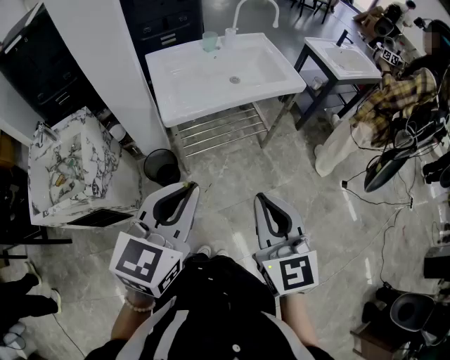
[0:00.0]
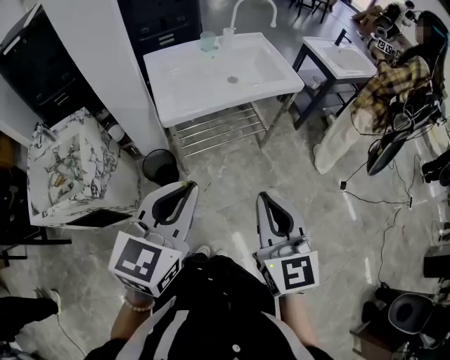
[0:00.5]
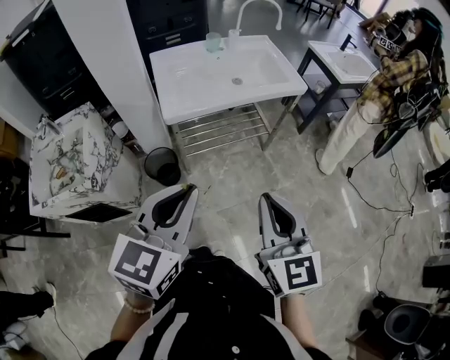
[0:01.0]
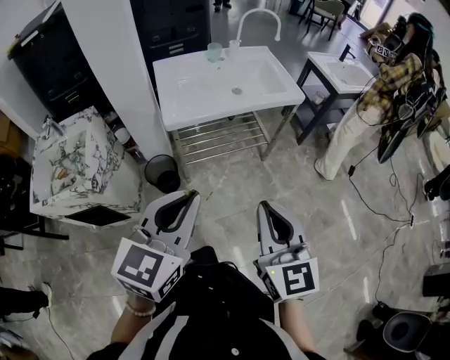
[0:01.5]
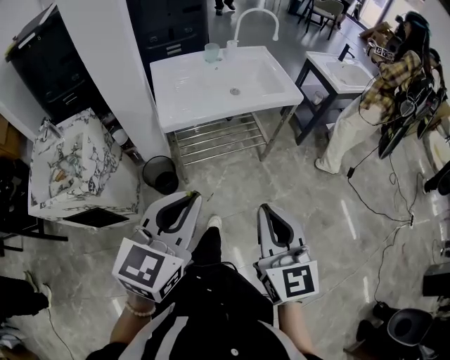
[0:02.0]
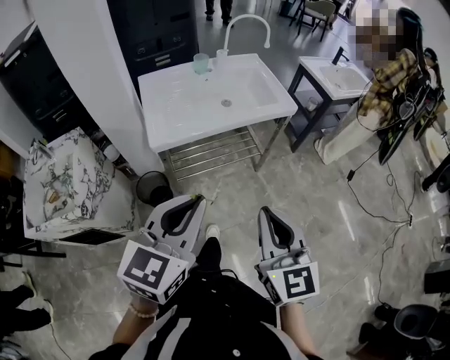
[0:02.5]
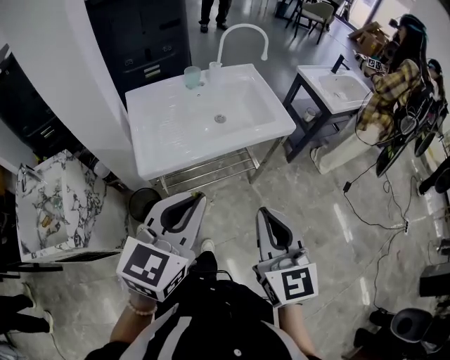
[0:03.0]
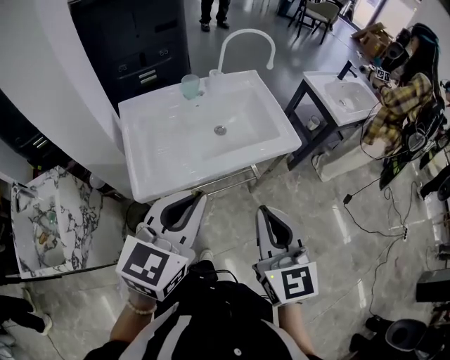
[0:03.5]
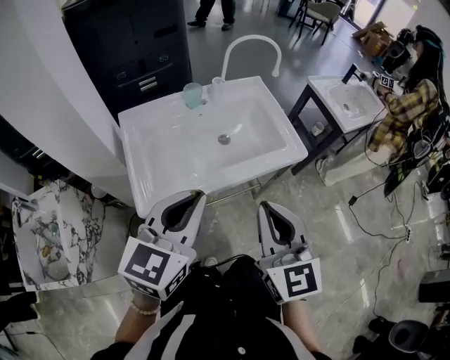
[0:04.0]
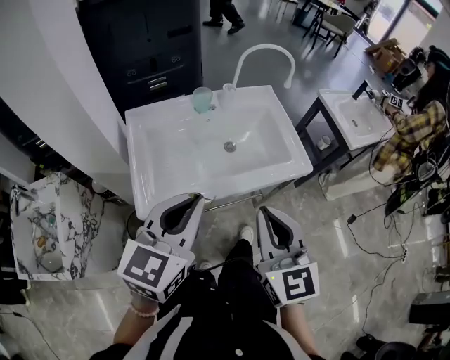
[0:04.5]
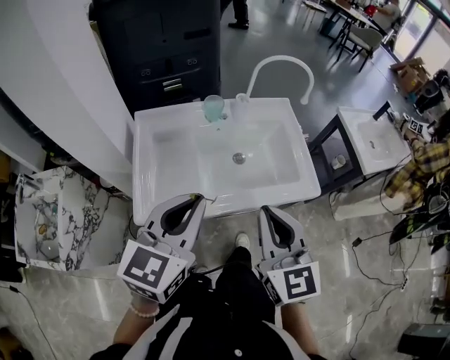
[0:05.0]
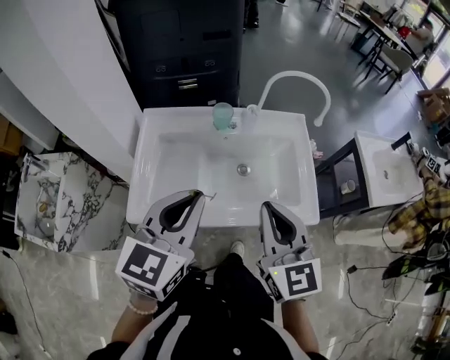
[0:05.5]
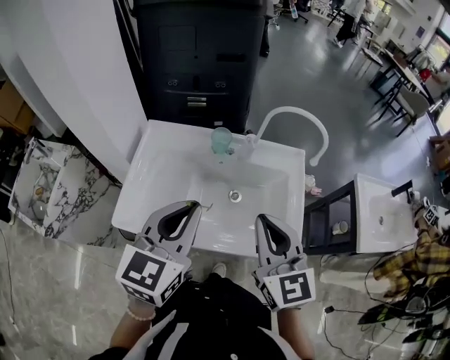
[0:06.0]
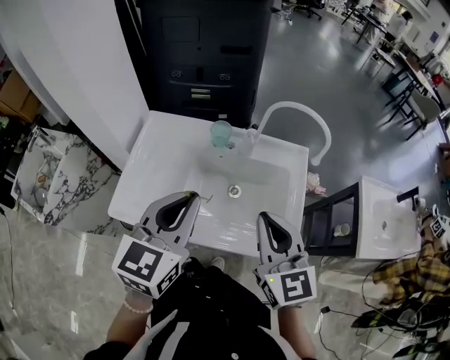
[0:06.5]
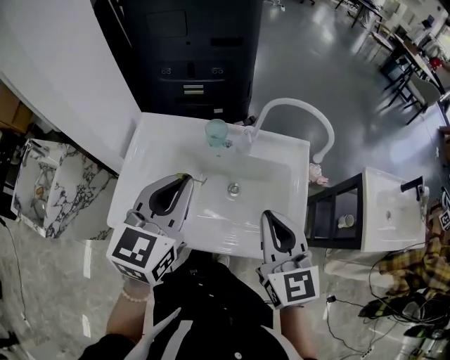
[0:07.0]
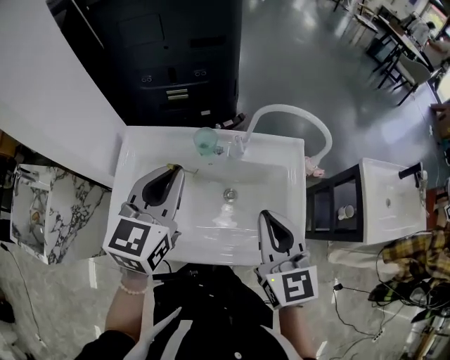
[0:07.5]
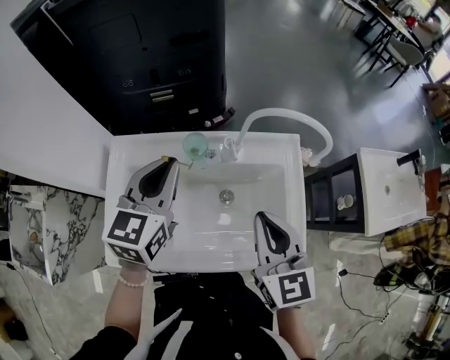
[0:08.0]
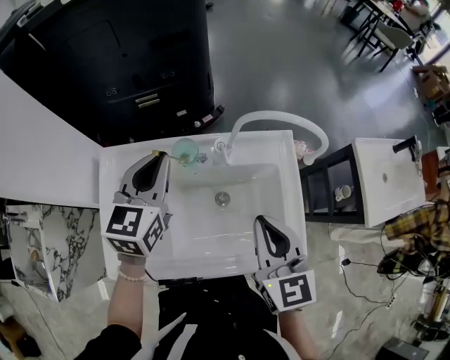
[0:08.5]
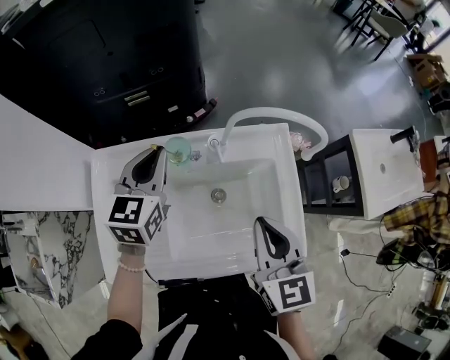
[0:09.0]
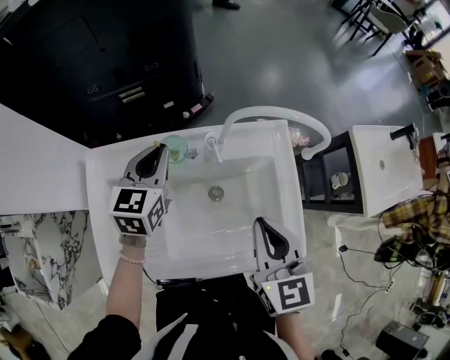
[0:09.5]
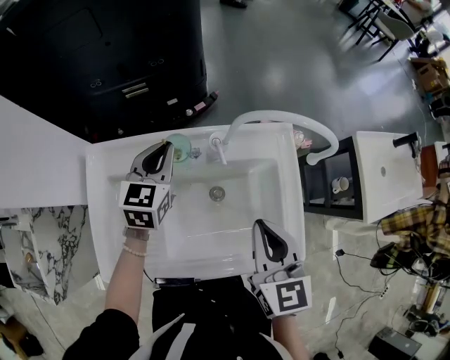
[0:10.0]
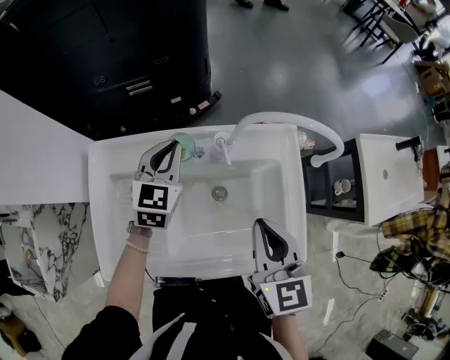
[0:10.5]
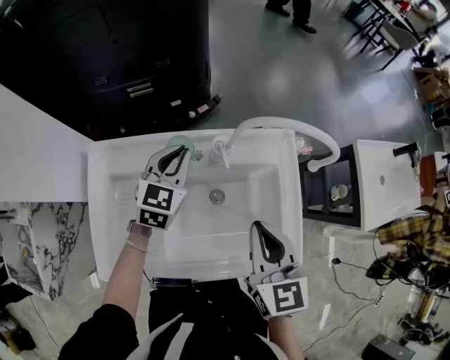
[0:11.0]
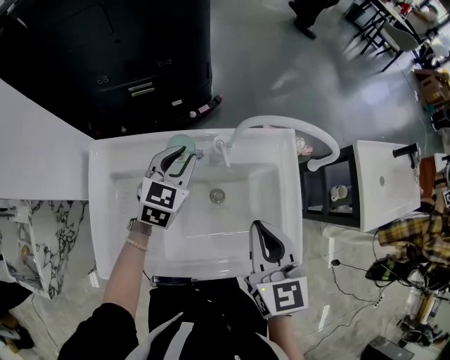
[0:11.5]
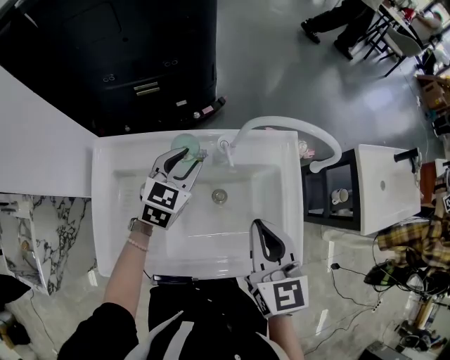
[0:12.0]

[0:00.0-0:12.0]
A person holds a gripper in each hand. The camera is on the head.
0:00.0 to 0:02.0: The left gripper ends up approximately 5 cm from where it was; the right gripper goes roughly 5 cm to the right.
0:02.0 to 0:04.0: Both grippers travel together forward, roughly 35 cm.
0:04.0 to 0:06.0: The right gripper shifts by about 25 cm, and turns by roughly 30 degrees, while the left gripper moves approximately 20 cm, and changes its angle by roughly 30 degrees.
0:06.0 to 0:08.0: The right gripper heads forward and downward, covering some 10 cm. The left gripper heads forward, covering some 20 cm.
0:08.0 to 0:10.0: The left gripper shifts approximately 15 cm downward and forward.
0:10.0 to 0:12.0: The left gripper ends up some 5 cm from where it was, and opens its fingers.

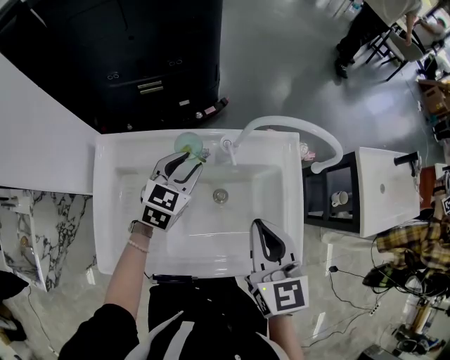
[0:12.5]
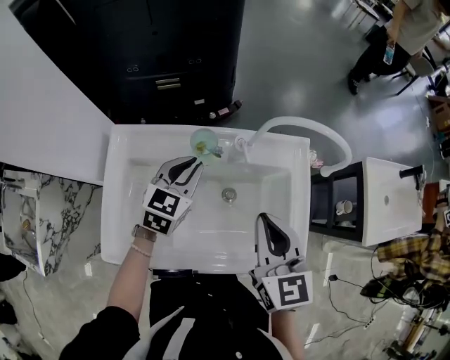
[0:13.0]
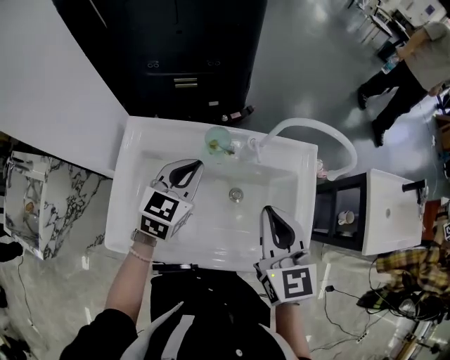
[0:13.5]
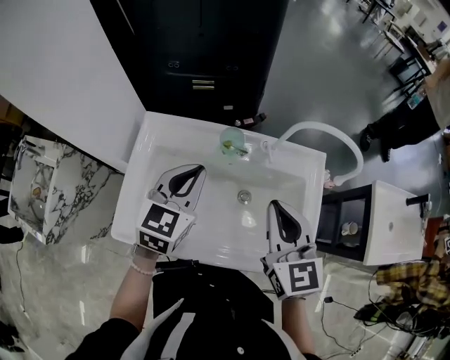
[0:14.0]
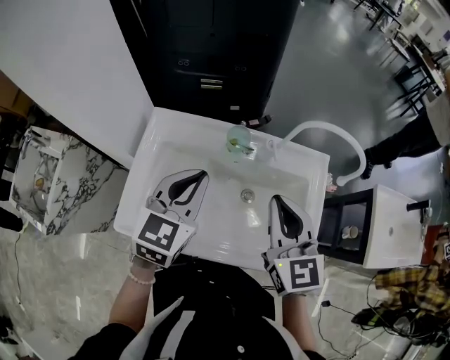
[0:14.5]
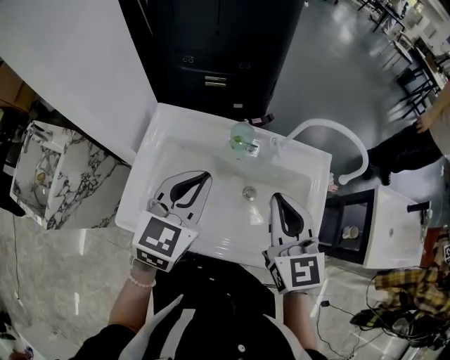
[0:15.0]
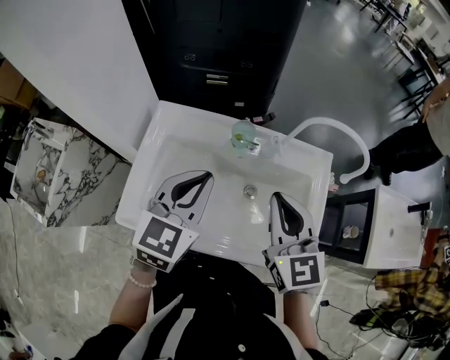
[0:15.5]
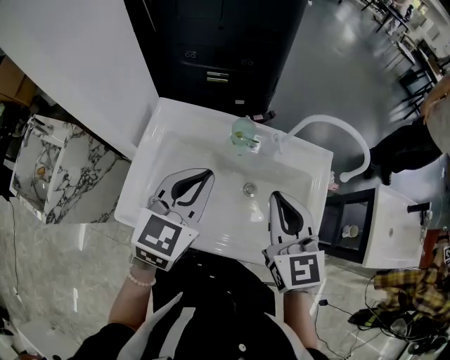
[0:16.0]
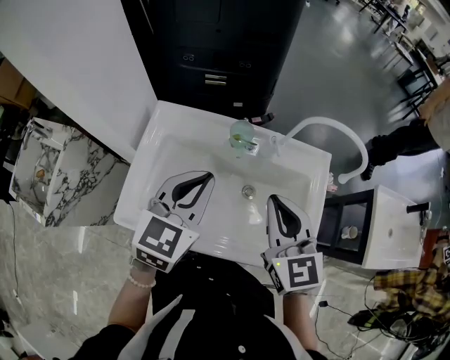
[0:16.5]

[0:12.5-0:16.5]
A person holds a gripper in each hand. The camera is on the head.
0:12.5 to 0:14.5: The right gripper heads to the left, covering approximately 5 cm, while the left gripper shifts about 20 cm backward, upward and to the left, and closes.
0:14.5 to 0:16.5: There are only small adjustments of the grippers.

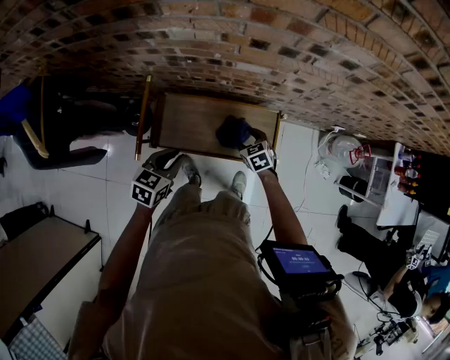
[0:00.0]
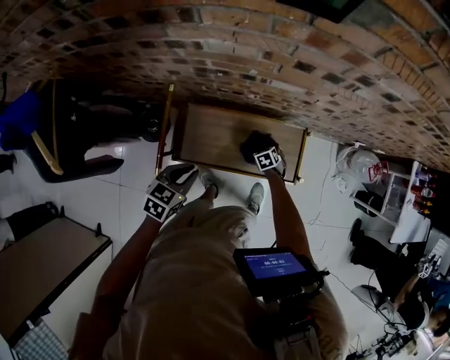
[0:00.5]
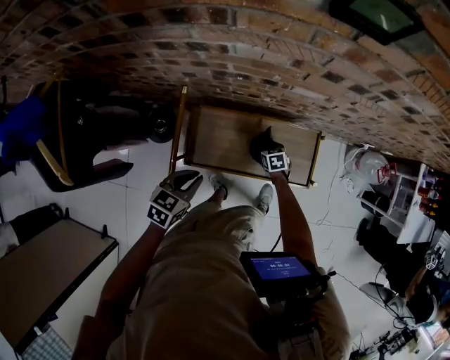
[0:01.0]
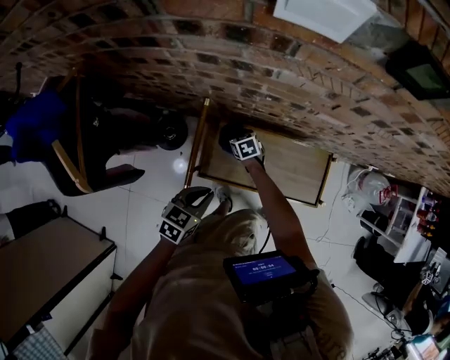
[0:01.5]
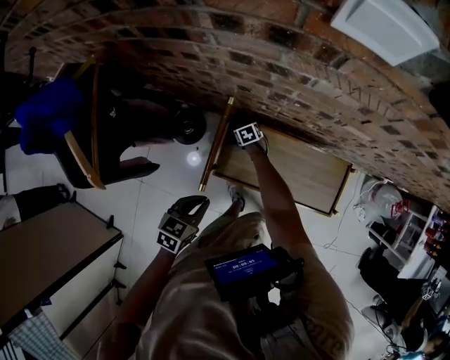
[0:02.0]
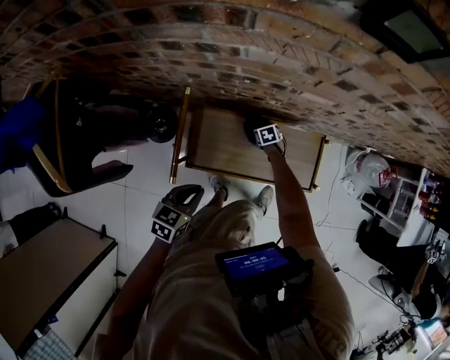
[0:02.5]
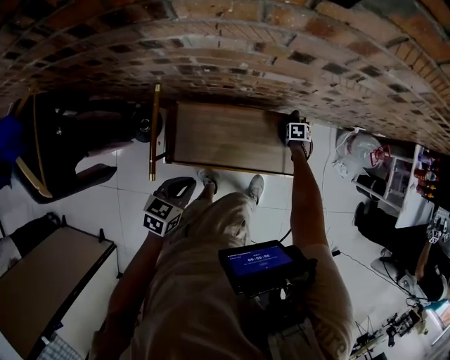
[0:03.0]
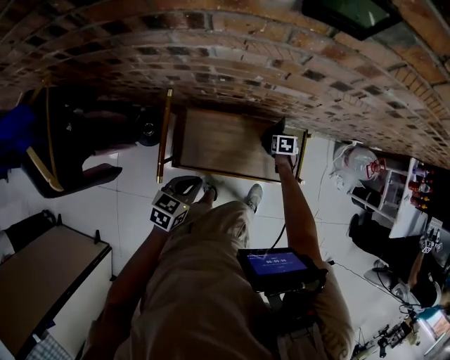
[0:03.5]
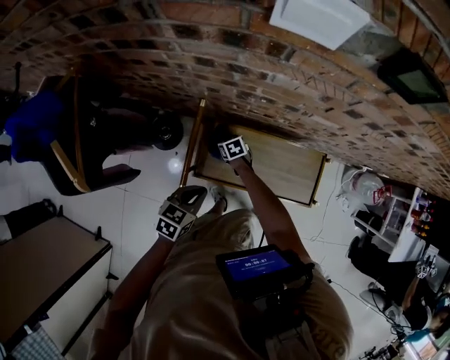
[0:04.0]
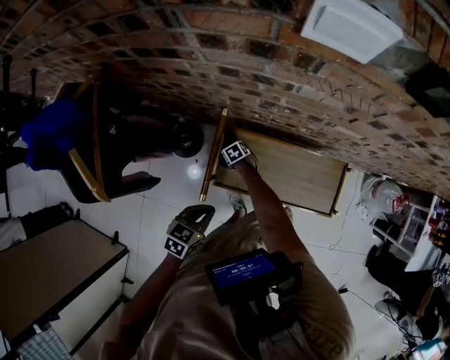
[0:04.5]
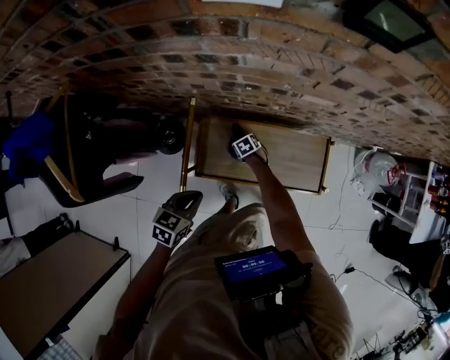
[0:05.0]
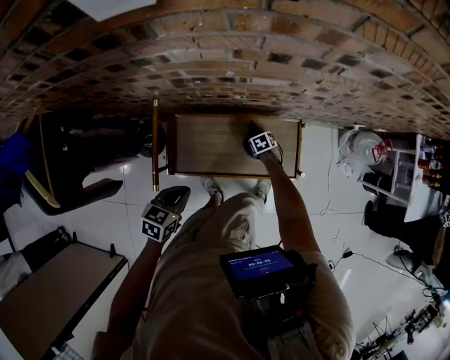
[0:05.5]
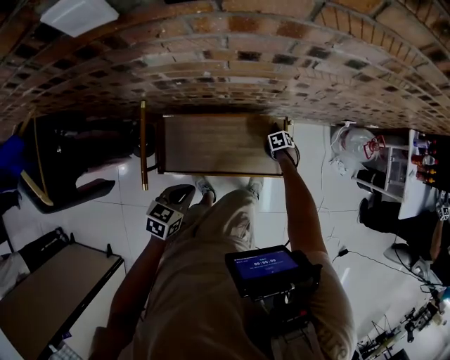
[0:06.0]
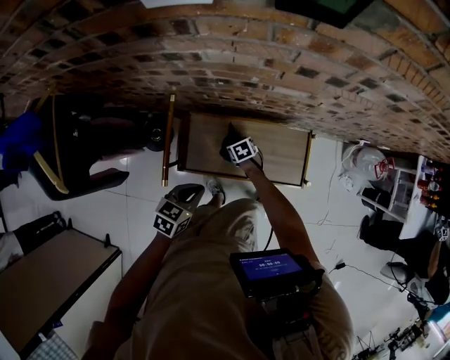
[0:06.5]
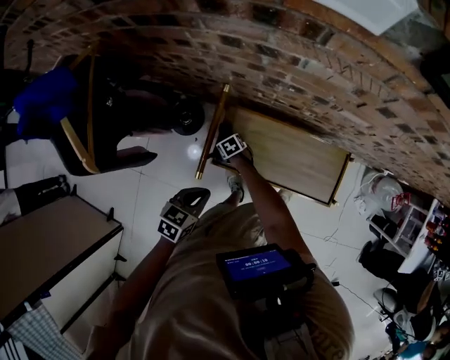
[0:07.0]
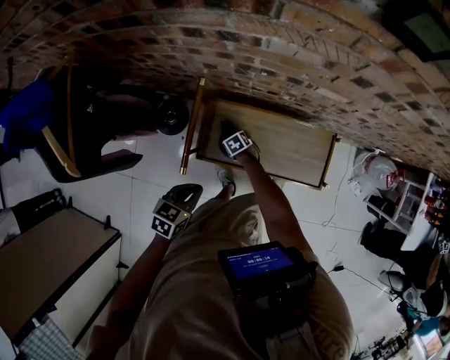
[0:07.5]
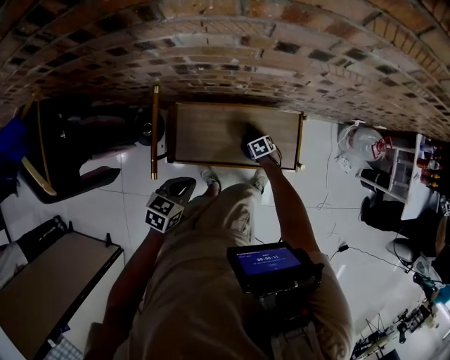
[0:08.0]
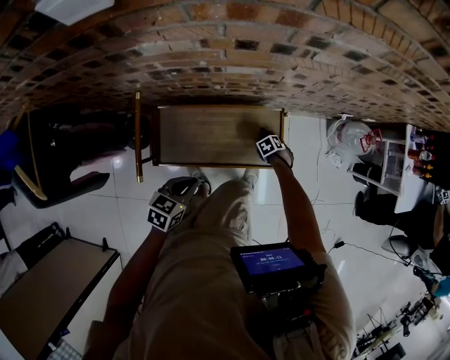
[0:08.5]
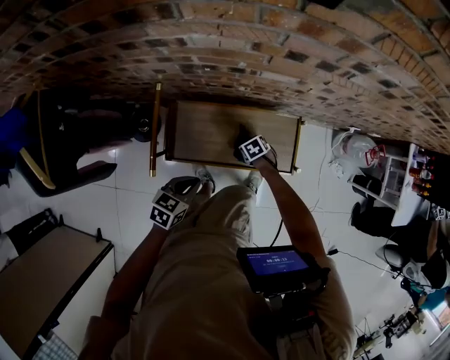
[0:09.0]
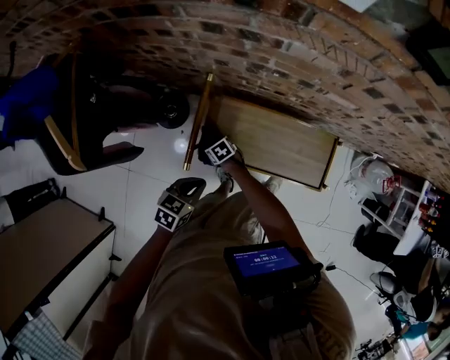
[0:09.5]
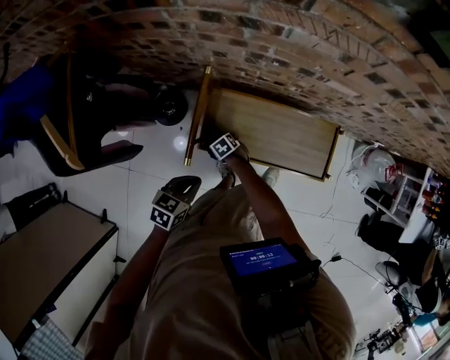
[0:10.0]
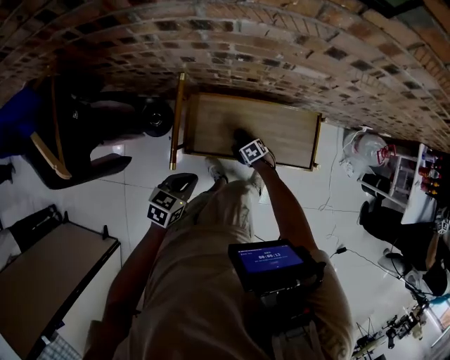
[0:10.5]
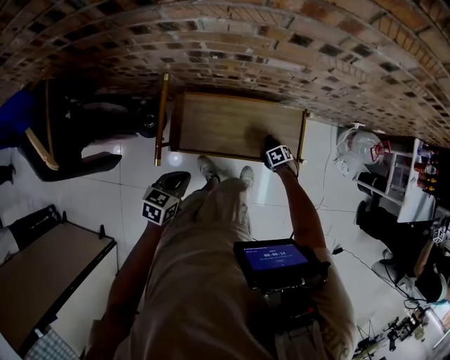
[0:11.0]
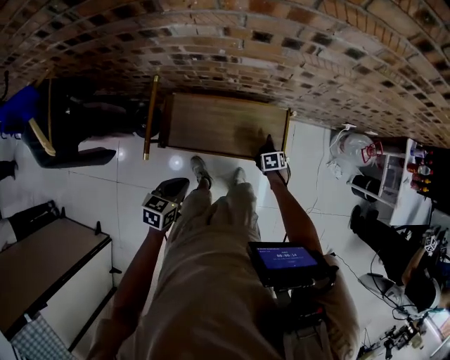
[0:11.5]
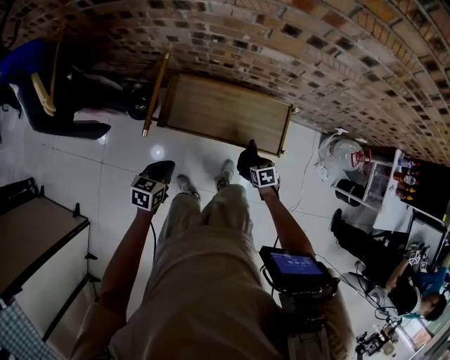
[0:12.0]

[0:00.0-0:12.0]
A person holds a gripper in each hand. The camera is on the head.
0:00.0 to 0:02.0: The left gripper shifts approximately 20 cm to the left. The right gripper heads to the left, downward and forward, covering roughly 40 cm, and closes up.
0:04.0 to 0:06.0: The right gripper shifts by roughly 50 cm, and swivels some 30 degrees, while the left gripper ends up approximately 15 cm from where it was.
0:06.0 to 0:08.0: The right gripper reaches roughly 10 cm upward, then returns.
0:08.0 to 0:10.0: The left gripper moves some 15 cm; the right gripper travels upward and back again, approximately 5 cm each way, and changes its angle by approximately 20 degrees.
0:10.0 to 0:12.0: The right gripper changes place by about 40 cm, and rotates about 20 degrees. The left gripper shifts by roughly 10 cm.
